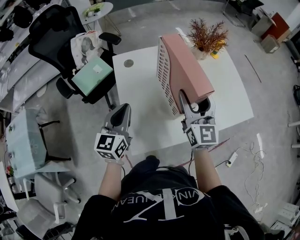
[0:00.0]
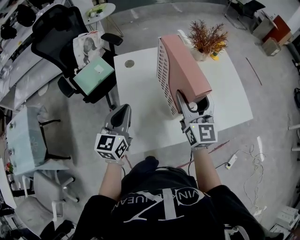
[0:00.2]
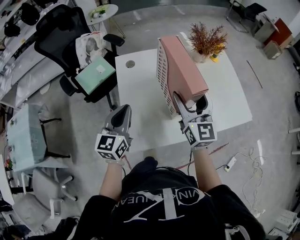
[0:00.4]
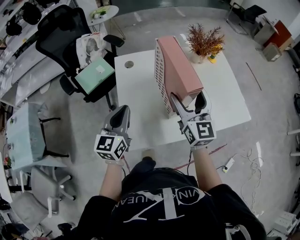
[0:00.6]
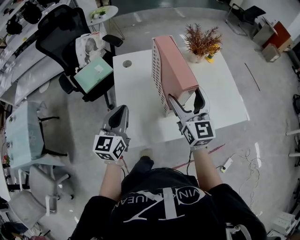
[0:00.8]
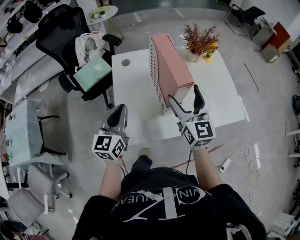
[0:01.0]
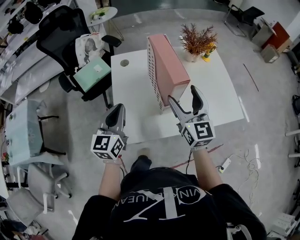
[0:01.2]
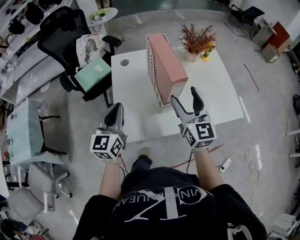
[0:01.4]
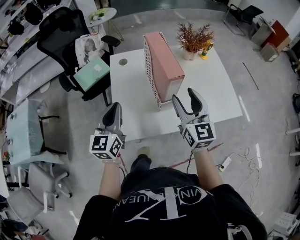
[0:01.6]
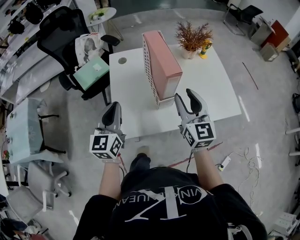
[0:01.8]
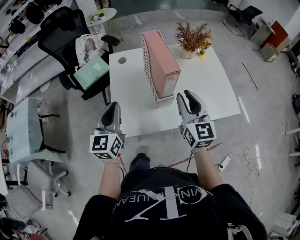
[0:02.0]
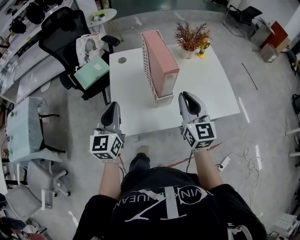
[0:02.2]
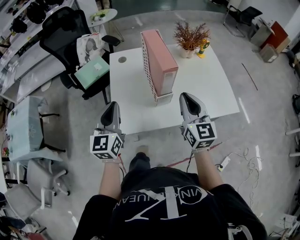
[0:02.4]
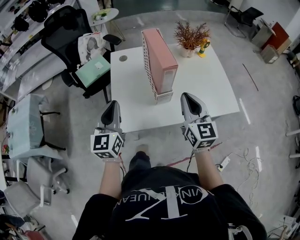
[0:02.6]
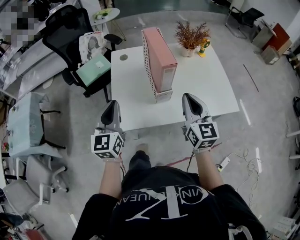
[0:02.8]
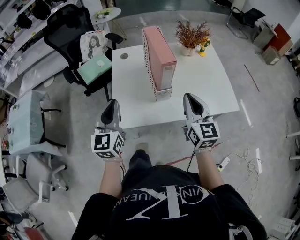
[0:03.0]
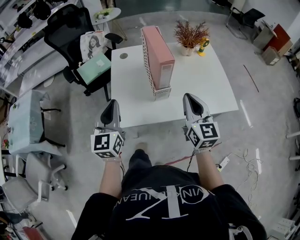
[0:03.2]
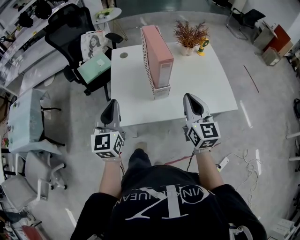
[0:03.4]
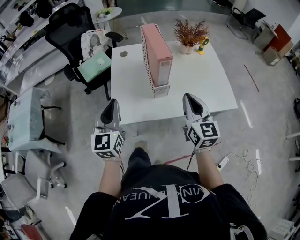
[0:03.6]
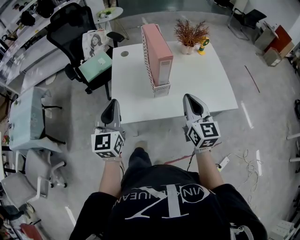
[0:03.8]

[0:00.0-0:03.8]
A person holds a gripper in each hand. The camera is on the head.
0:00.0 to 0:01.2: Both grippers travel together backward, approximately 5 cm.
0:01.2 to 0:02.6: The two grippers go some 5 cm backward. The right gripper closes its fingers.
0:02.6 to 0:03.8: The right gripper moves approximately 5 cm. The left gripper moves backward, approximately 5 cm.

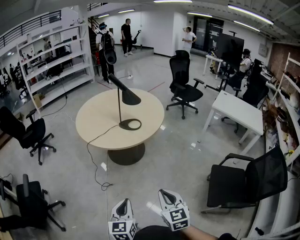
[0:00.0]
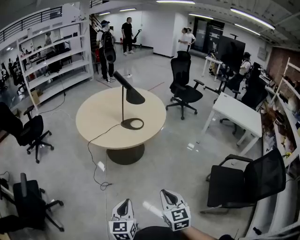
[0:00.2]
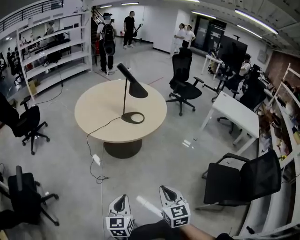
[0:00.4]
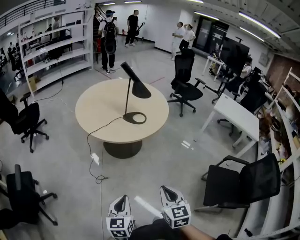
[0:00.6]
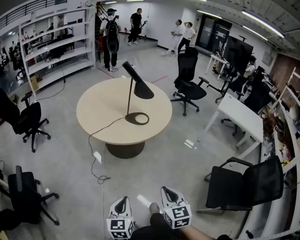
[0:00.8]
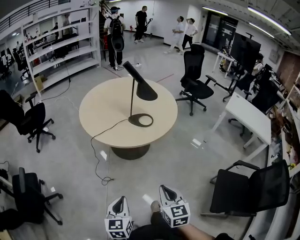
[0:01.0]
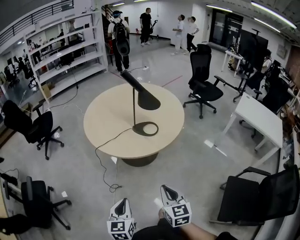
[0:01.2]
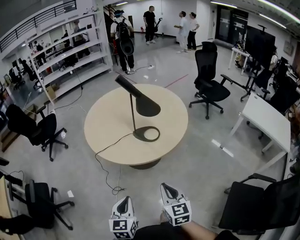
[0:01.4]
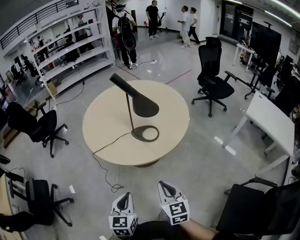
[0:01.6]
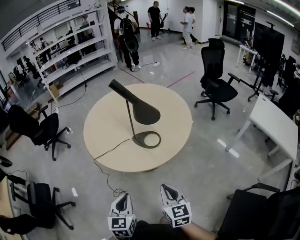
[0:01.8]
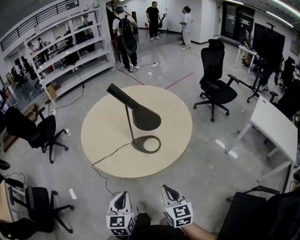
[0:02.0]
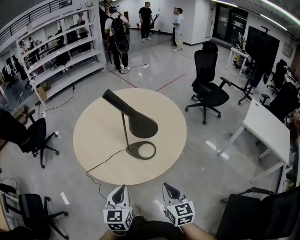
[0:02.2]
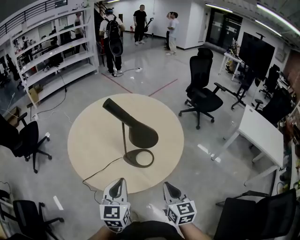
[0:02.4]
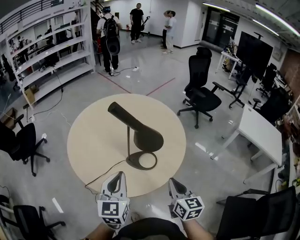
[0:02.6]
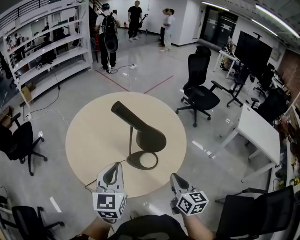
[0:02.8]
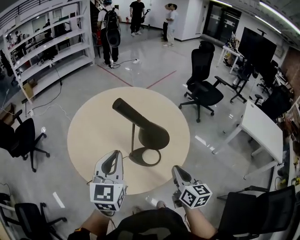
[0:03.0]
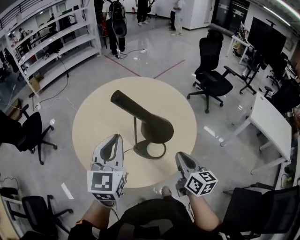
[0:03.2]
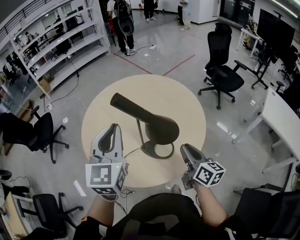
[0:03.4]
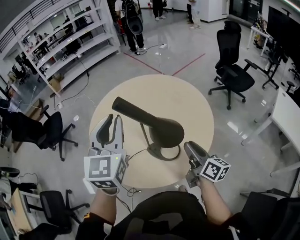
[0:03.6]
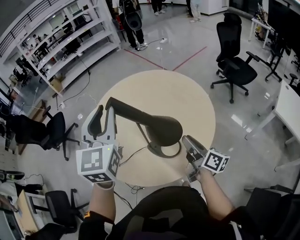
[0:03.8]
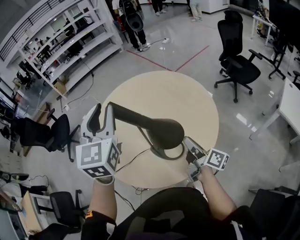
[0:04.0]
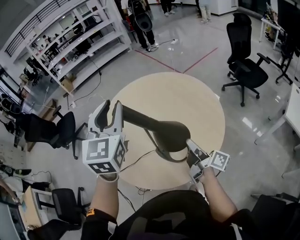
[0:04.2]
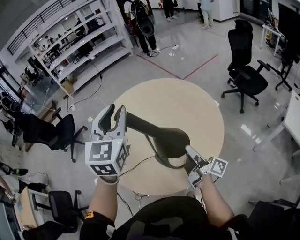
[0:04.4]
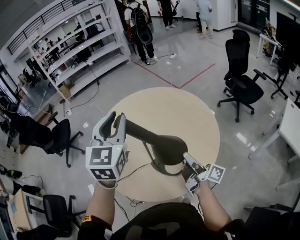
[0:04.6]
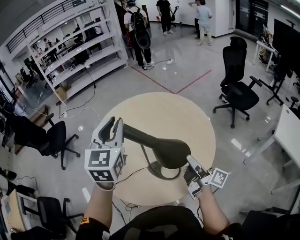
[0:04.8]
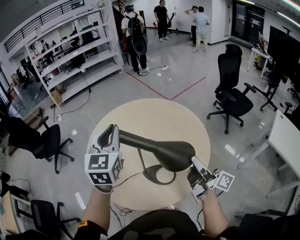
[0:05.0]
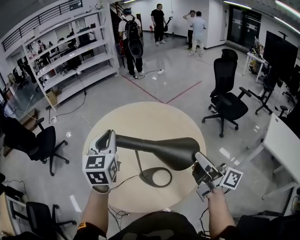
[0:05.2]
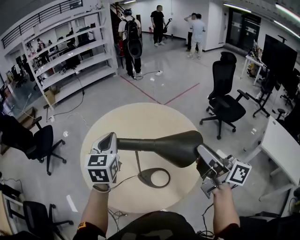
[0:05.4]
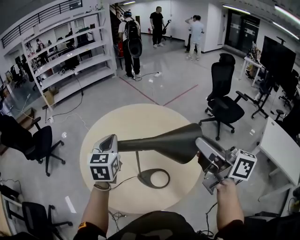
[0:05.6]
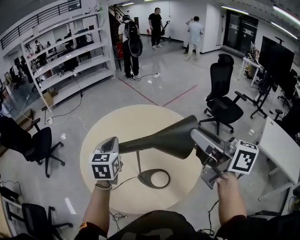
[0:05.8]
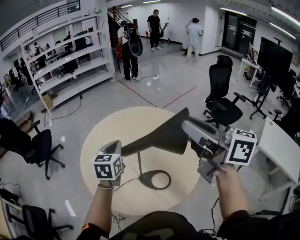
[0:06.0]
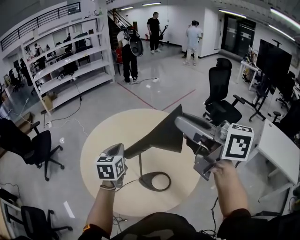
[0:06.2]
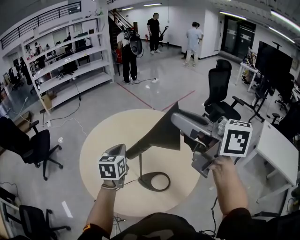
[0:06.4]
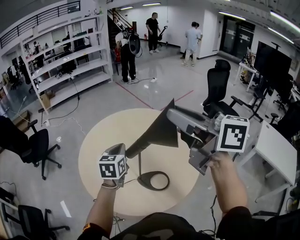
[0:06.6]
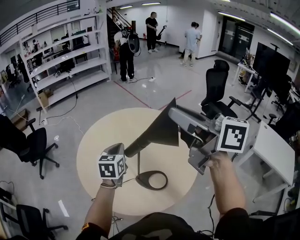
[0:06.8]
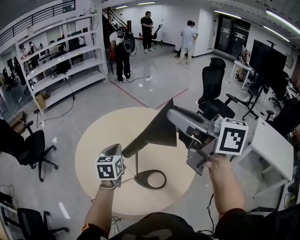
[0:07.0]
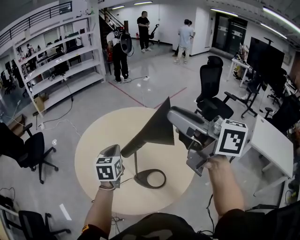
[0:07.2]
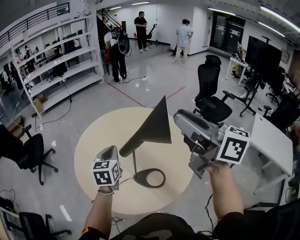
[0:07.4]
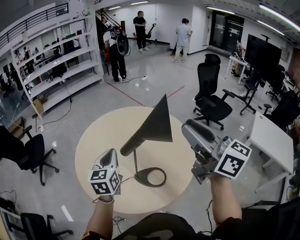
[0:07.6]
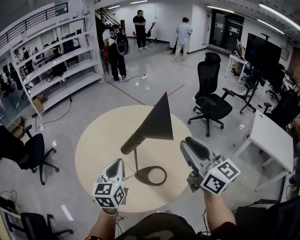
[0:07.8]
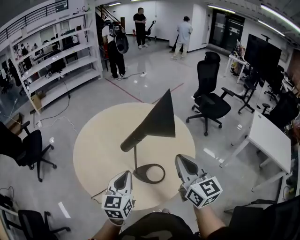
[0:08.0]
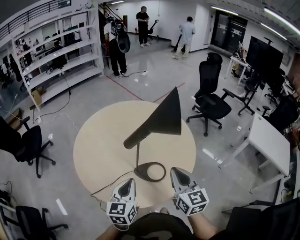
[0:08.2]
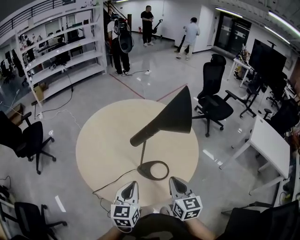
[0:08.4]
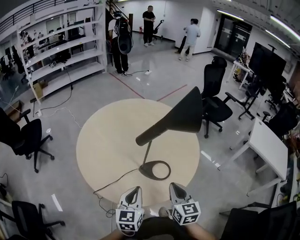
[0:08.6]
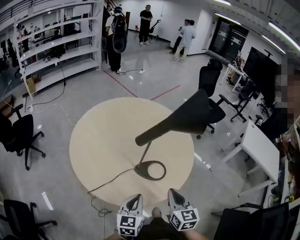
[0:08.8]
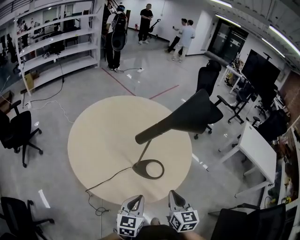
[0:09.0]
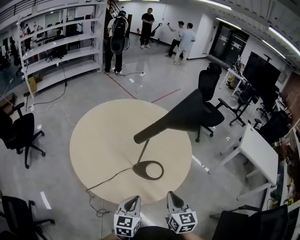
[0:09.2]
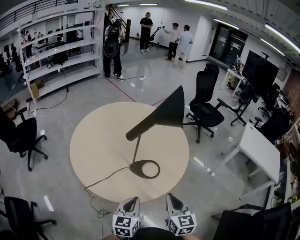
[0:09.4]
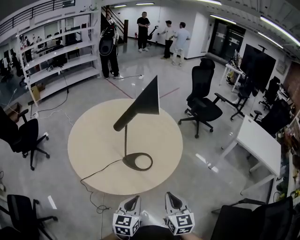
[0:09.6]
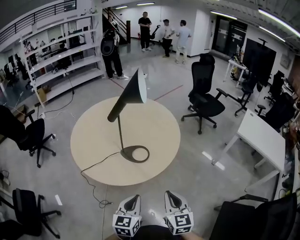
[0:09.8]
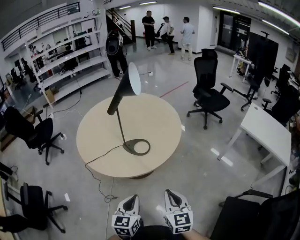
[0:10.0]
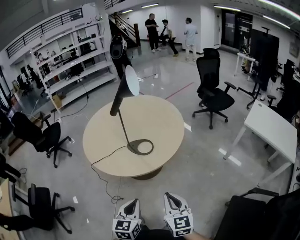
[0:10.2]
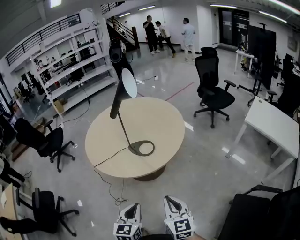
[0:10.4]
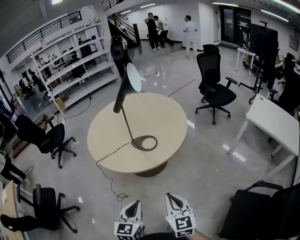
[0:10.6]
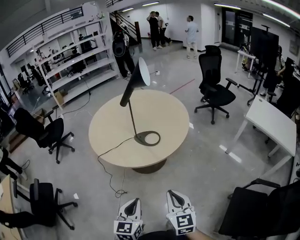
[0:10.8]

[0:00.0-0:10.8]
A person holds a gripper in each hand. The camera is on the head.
0:00.0 to 0:01.6: The two grippers go approximately 35 cm forward.
0:01.6 to 0:03.0: The left gripper is displaced forward and upward by some 40 cm, and rotates some 20 degrees; the right gripper moves forward, approximately 30 cm, and changes its angle by approximately 20 degrees.
0:03.0 to 0:04.6: The right gripper moves forward and to the right, some 20 cm, rotates around the line of its fingers by about 60 degrees, clockwise from behind, and opens up. The left gripper moves forward, upward and to the right, roughly 20 cm, and opens its fingers.
0:04.6 to 0:06.2: The left gripper shifts approximately 15 cm downward, changes its angle by approximately 30 degrees, and closes; the right gripper shifts about 35 cm upward, and rolls counterclockwise, seen from behind, by roughly 50 degrees.
0:06.2 to 0:07.8: The left gripper travels backward by some 10 cm; the right gripper shifts roughly 15 cm downward and backward, and changes its angle by approximately 30 degrees.
0:07.8 to 0:09.2: The left gripper goes about 20 cm backward and downward; the right gripper is displaced downward and backward by some 25 cm, rotates about 30 degrees, and closes its fingers.
0:09.2 to 0:10.8: The grippers both shift backward and to the right by about 40 cm.

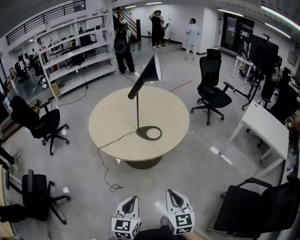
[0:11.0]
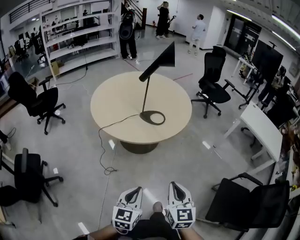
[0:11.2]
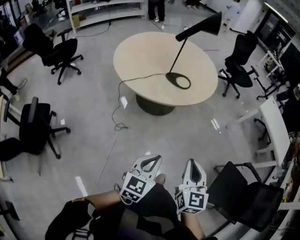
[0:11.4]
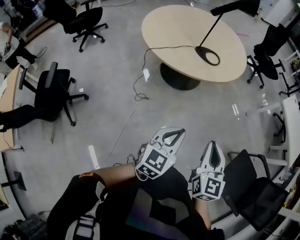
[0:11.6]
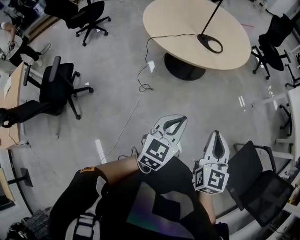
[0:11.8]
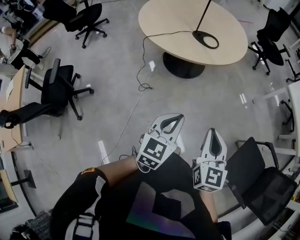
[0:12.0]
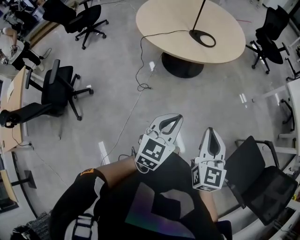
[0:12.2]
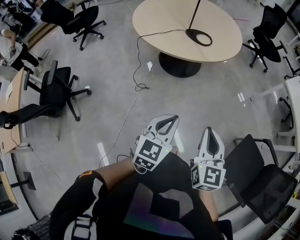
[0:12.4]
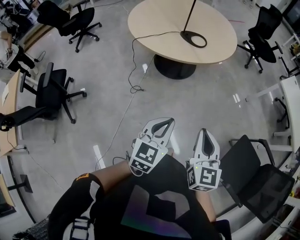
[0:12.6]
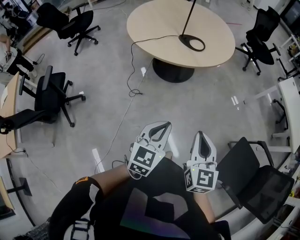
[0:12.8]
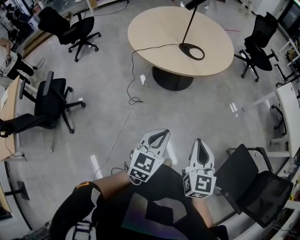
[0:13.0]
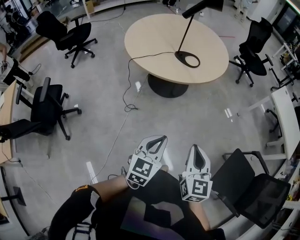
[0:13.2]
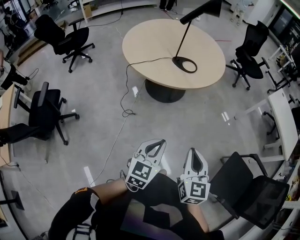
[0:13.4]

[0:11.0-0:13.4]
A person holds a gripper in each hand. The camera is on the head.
0:11.0 to 0:12.2: Both grippers move backward, about 15 cm.
0:12.2 to 0:13.4: The grippers stay close to where they were, moving slightly.

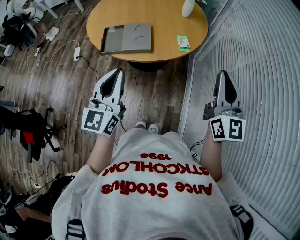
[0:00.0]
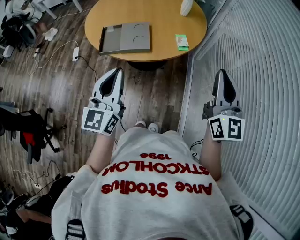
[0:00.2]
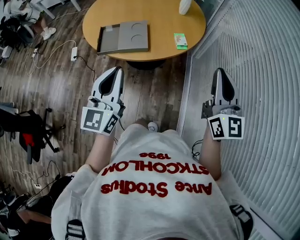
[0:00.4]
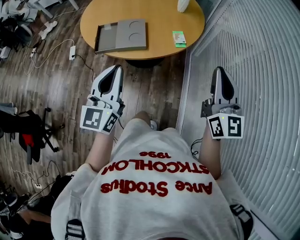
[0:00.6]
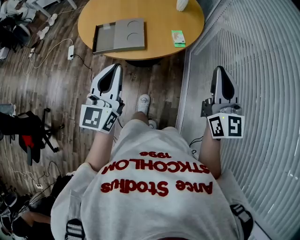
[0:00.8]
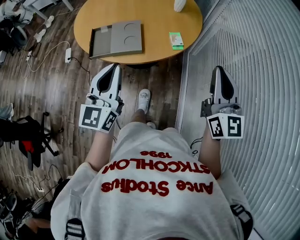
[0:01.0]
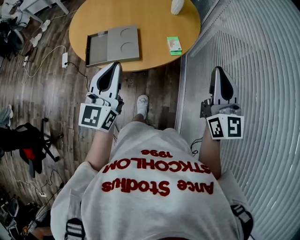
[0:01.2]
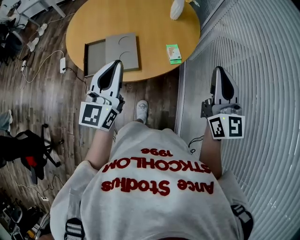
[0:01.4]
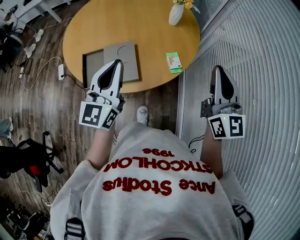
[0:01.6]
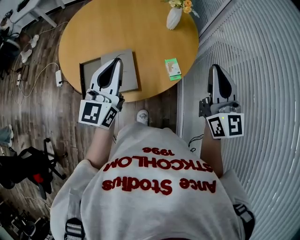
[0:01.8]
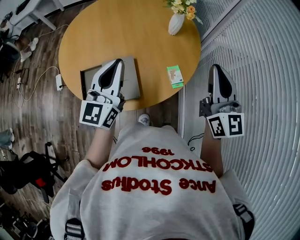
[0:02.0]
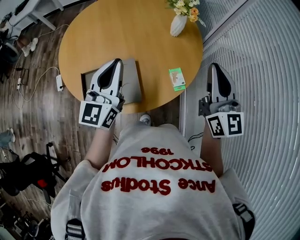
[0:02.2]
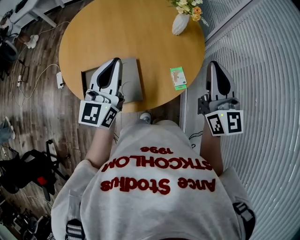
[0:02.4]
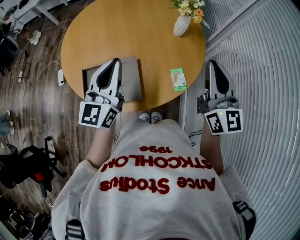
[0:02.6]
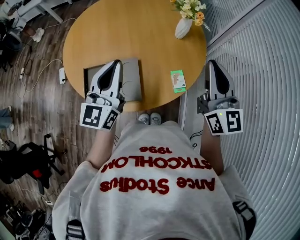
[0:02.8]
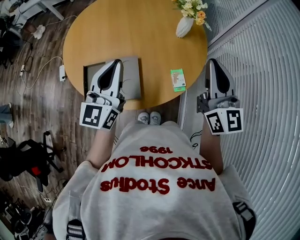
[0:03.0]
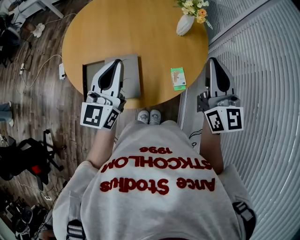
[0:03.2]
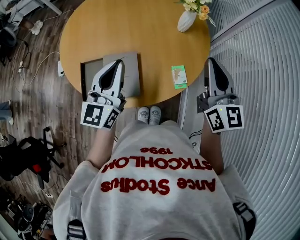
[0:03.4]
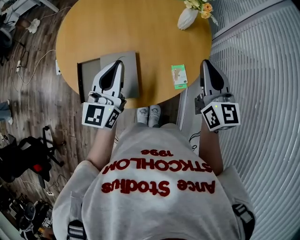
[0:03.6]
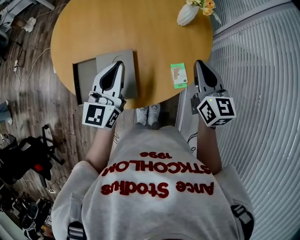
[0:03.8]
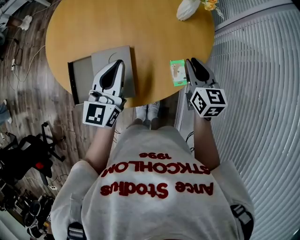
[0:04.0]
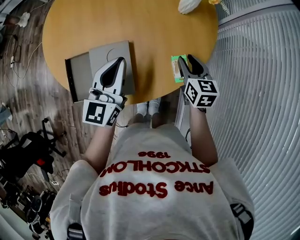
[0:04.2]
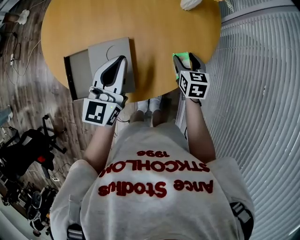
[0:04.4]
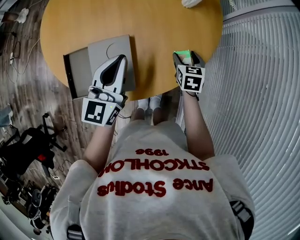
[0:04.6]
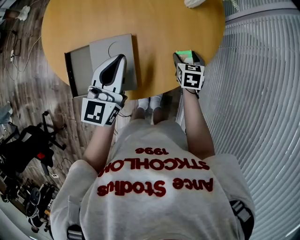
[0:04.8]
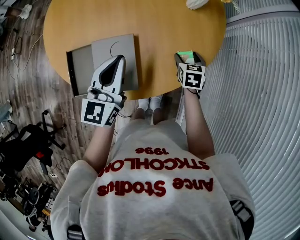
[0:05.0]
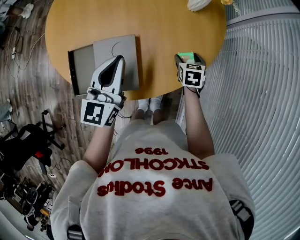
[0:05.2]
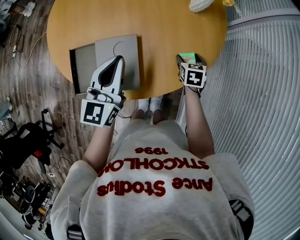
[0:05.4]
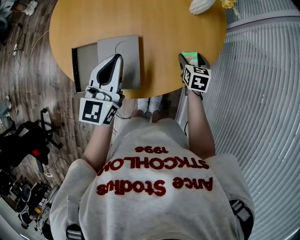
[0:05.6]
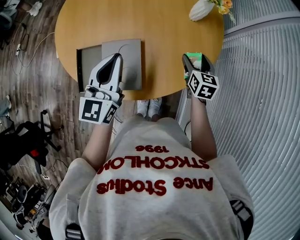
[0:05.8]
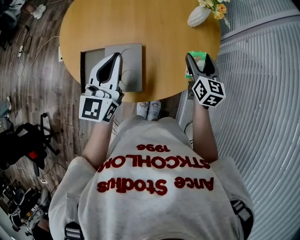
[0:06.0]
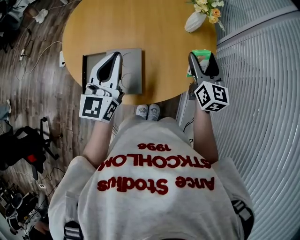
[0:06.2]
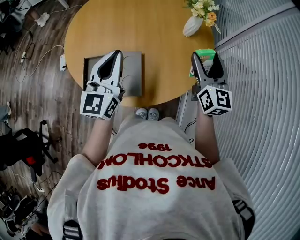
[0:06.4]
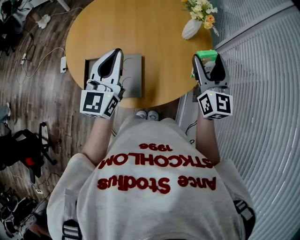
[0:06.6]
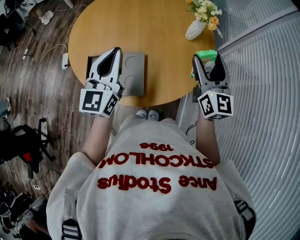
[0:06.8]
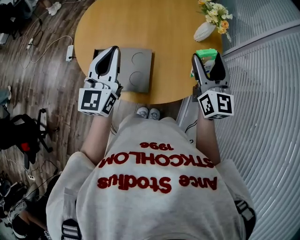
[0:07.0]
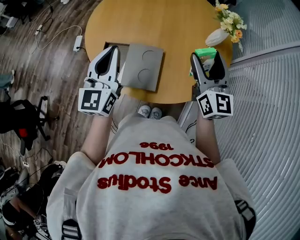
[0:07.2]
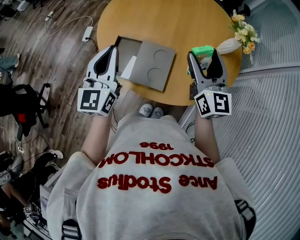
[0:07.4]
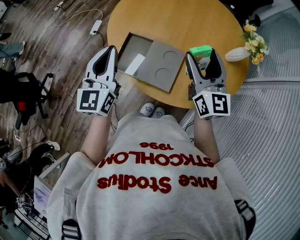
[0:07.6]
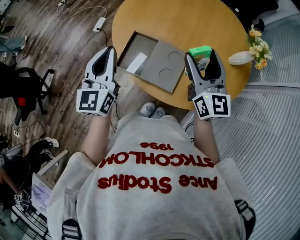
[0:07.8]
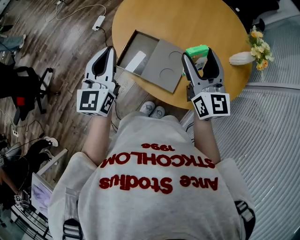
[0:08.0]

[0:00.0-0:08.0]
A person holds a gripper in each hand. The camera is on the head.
0:00.0 to 0:01.6: The two grippers go roughly 20 cm forward.
0:01.6 to 0:03.2: Both grippers move forward, about 15 cm.
0:03.2 to 0:04.8: The right gripper is displaced downward by roughly 40 cm, points its fingers some 60 degrees further downward, and opens up. Meanwhile the left gripper shifts some 15 cm downward and forward.
0:04.8 to 0:06.4: The left gripper is displaced upward and to the left by about 15 cm; the right gripper is displaced upward by some 30 cm, and angles its fingers upward, by roughly 50 degrees.
0:06.4 to 0:08.0: The left gripper ends up roughly 20 cm from where it was, and changes its angle by roughly 30 degrees; the right gripper shifts by approximately 25 cm, and turns by some 40 degrees.
